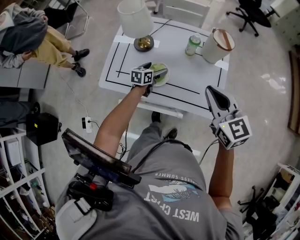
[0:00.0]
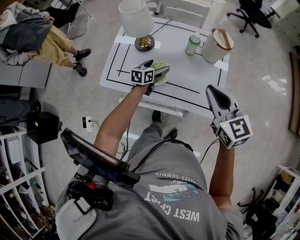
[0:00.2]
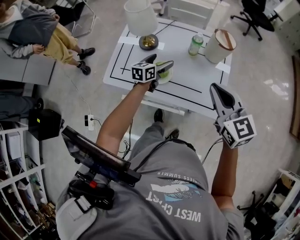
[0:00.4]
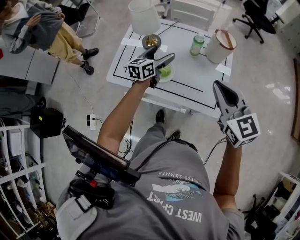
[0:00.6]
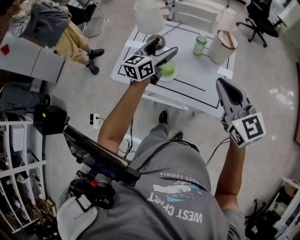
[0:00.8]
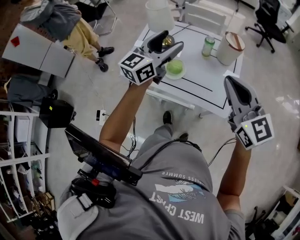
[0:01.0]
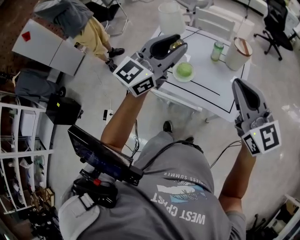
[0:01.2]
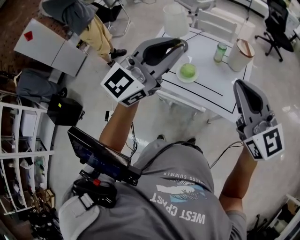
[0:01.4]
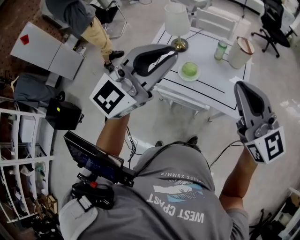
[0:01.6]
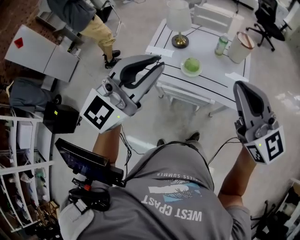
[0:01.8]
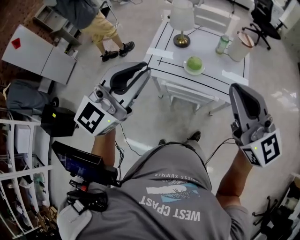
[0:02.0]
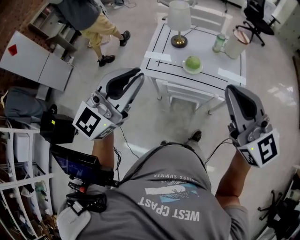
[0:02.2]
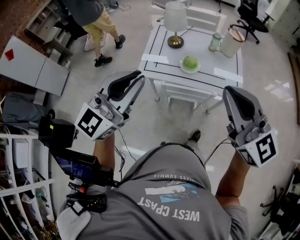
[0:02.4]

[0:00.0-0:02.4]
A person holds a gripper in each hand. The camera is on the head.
0:00.0 to 0:01.2: The left gripper heads upward, covering some 40 cm, tips its fingers upward by about 40 degrees, and closes its fingers. Meanwhile the right gripper goes roughly 15 cm upward and backward, and turns by some 20 degrees.
0:01.2 to 0:02.4: Both grippers move to the left and backward, some 30 cm.

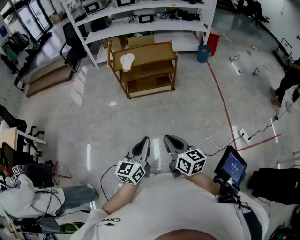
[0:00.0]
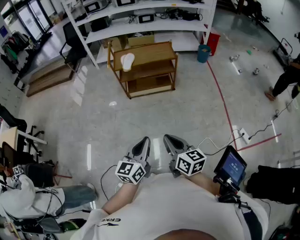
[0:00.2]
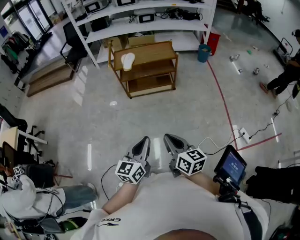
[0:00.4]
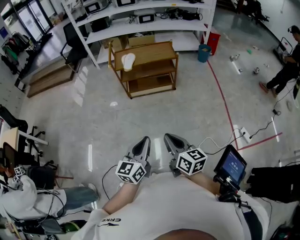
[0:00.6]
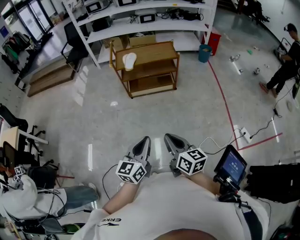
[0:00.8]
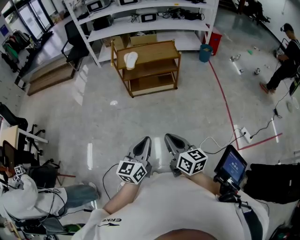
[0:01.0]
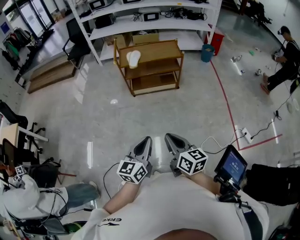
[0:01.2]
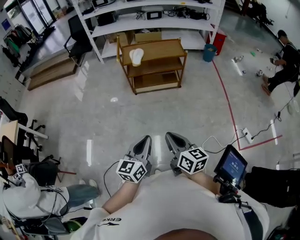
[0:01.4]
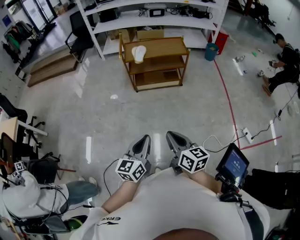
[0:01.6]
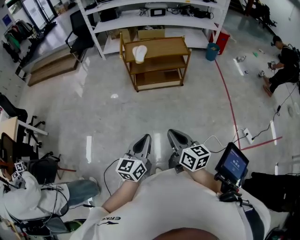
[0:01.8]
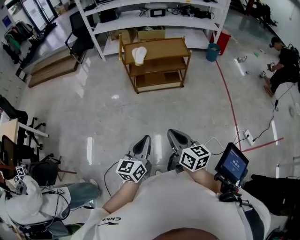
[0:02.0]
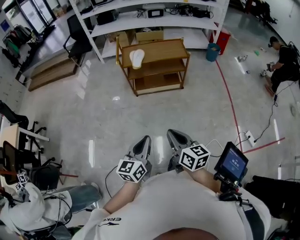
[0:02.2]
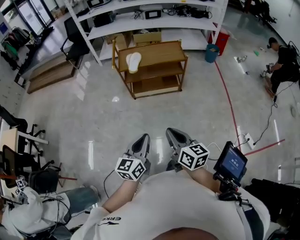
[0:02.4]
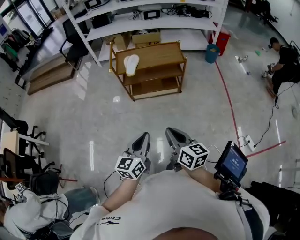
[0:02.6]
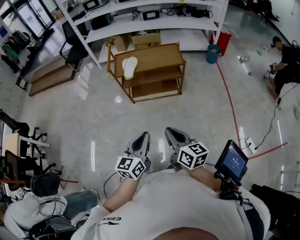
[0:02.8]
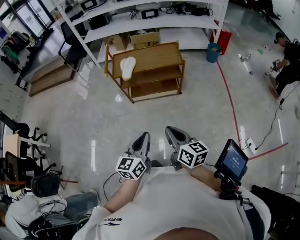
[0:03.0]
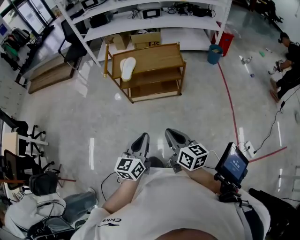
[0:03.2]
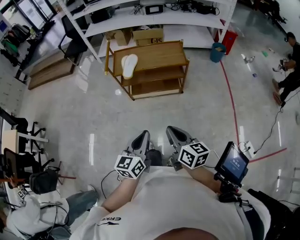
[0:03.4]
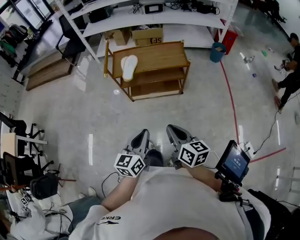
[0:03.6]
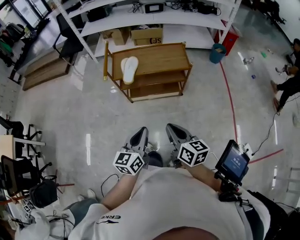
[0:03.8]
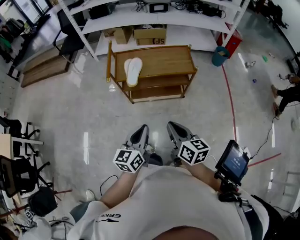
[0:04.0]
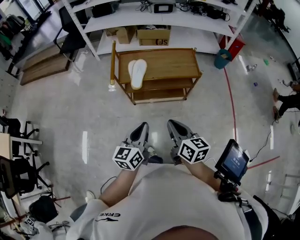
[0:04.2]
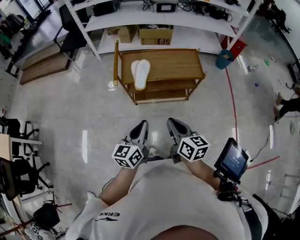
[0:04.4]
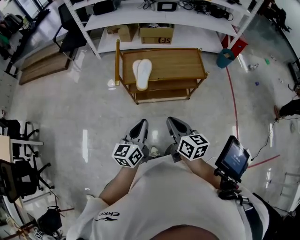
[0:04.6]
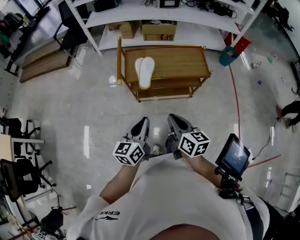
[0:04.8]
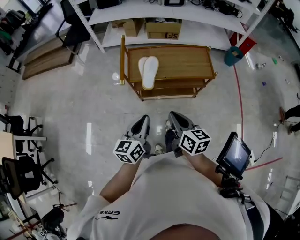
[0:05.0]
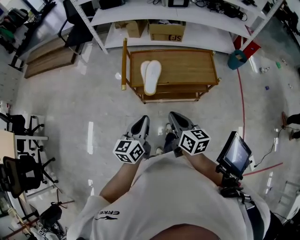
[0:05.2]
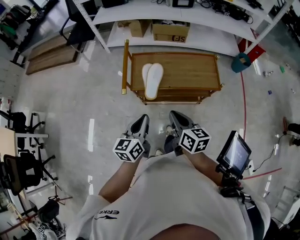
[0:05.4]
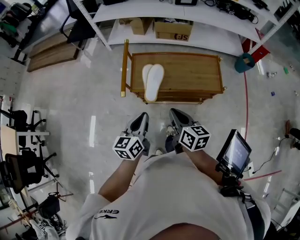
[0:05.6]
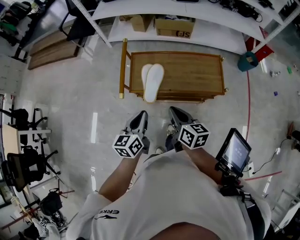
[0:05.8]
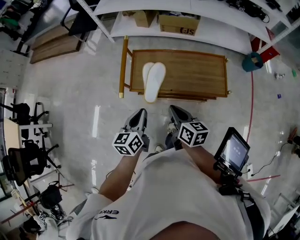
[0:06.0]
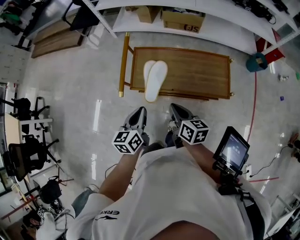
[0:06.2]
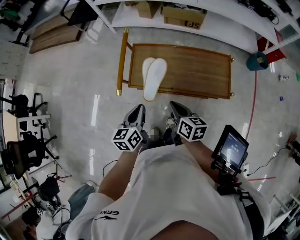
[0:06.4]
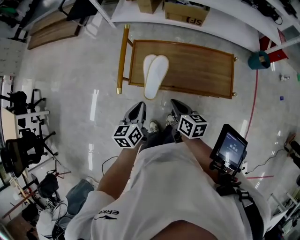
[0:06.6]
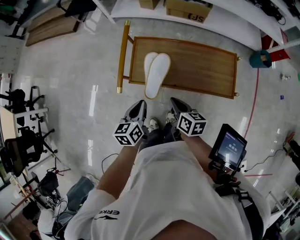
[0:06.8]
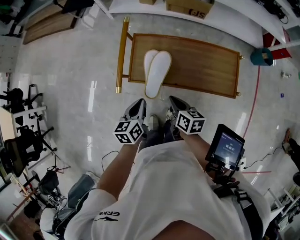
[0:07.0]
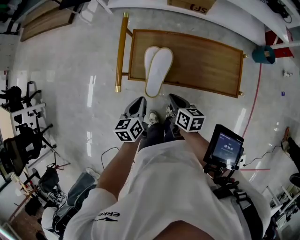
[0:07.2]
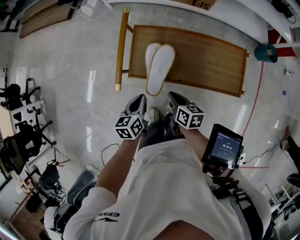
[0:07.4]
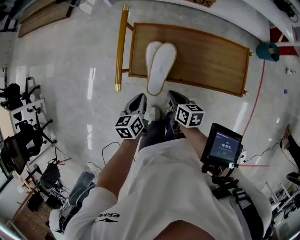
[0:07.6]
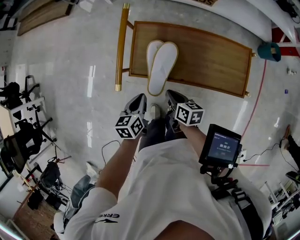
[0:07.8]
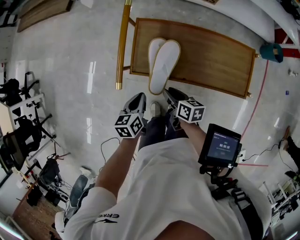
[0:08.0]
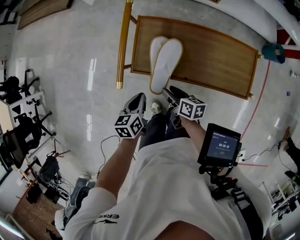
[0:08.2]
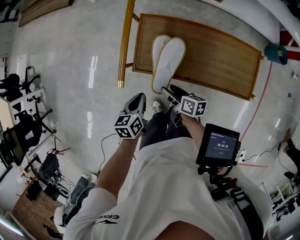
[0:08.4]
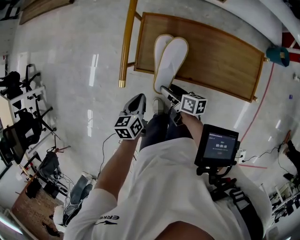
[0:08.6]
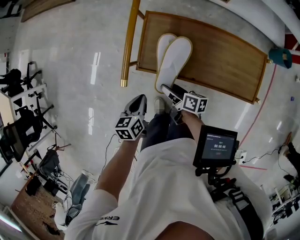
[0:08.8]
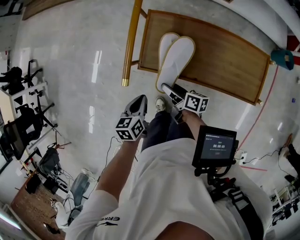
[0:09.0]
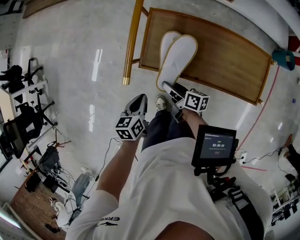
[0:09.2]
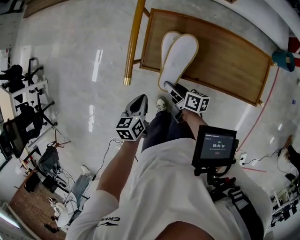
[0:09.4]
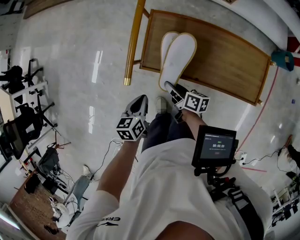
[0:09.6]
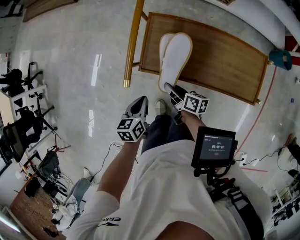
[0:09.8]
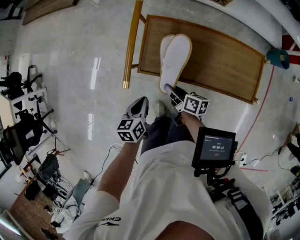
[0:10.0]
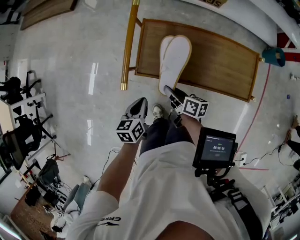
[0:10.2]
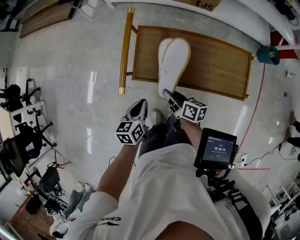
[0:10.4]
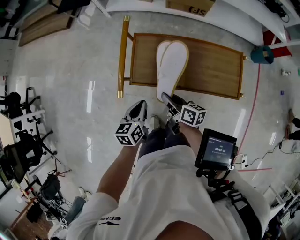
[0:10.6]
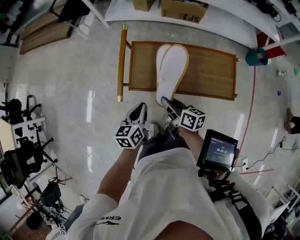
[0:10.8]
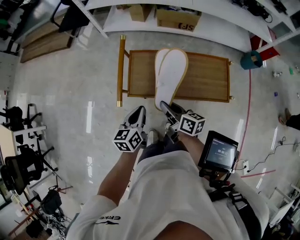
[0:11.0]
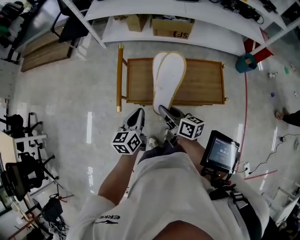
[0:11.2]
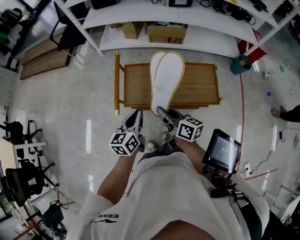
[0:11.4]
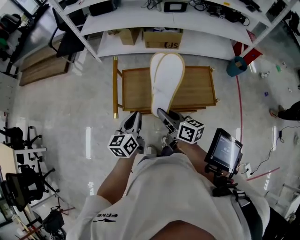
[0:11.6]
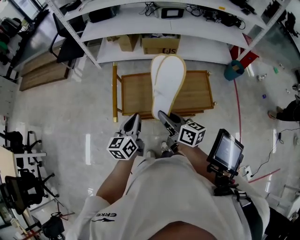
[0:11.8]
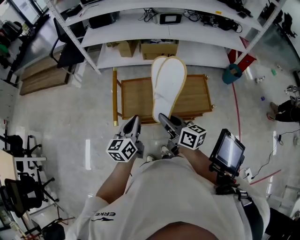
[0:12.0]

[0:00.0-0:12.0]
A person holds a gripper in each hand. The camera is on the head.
0:00.0 to 0:01.6: The two grippers go roughly 10 cm to the left.
0:01.6 to 0:03.0: Both grippers move forward and to the right, roughly 25 cm.
0:03.0 to 0:04.4: Both grippers travel together forward and to the left, approximately 25 cm.
0:04.4 to 0:06.0: The two grippers go some 25 cm forward.
0:06.0 to 0:07.6: The two grippers go approximately 20 cm downward and forward.
0:07.6 to 0:09.0: The left gripper ends up some 5 cm from where it was; the right gripper travels to the left and downward by roughly 5 cm, changes its angle by some 30 degrees, and opens its fingers.
0:09.0 to 0:10.4: The left gripper moves some 5 cm. The right gripper travels upward by about 5 cm, and closes its fingers.
0:10.4 to 0:12.0: The grippers both shift upward by some 25 cm. The left gripper rotates roughly 30 degrees. The right gripper changes its angle by some 30 degrees.

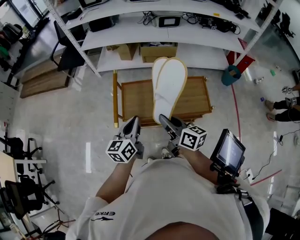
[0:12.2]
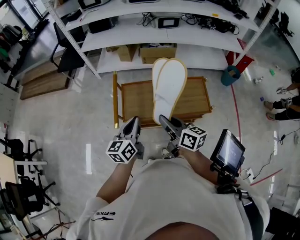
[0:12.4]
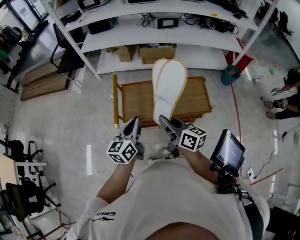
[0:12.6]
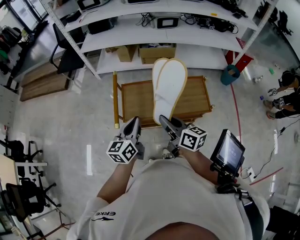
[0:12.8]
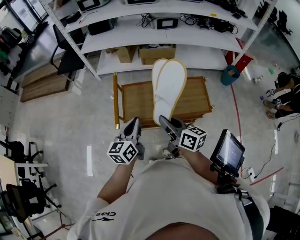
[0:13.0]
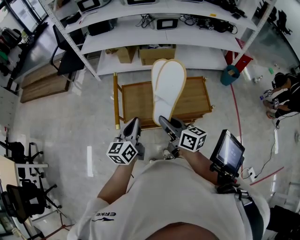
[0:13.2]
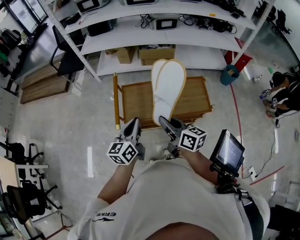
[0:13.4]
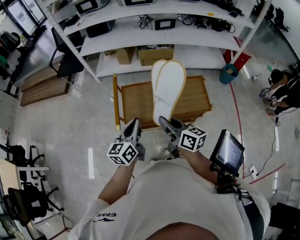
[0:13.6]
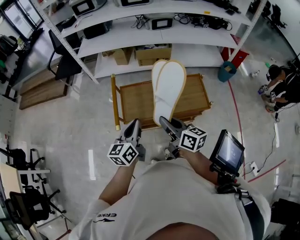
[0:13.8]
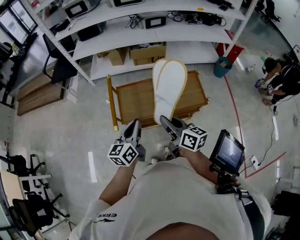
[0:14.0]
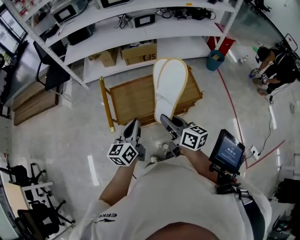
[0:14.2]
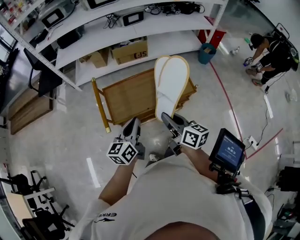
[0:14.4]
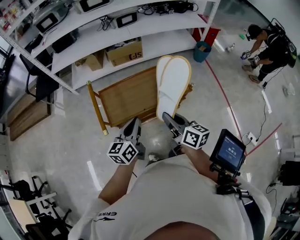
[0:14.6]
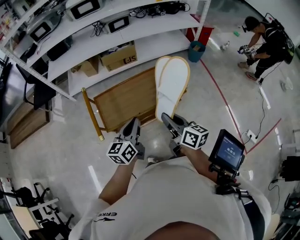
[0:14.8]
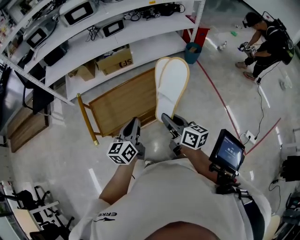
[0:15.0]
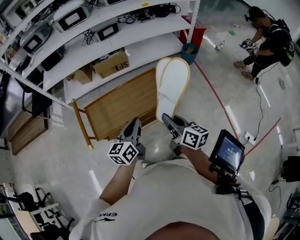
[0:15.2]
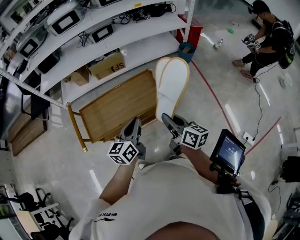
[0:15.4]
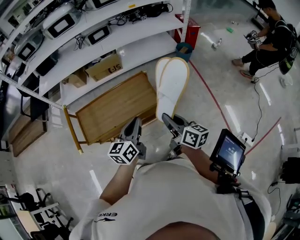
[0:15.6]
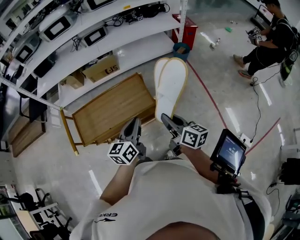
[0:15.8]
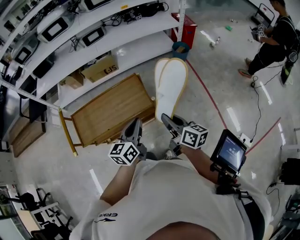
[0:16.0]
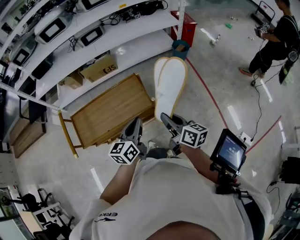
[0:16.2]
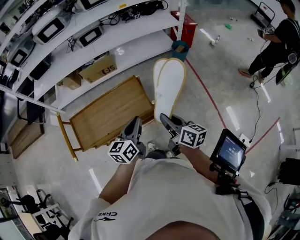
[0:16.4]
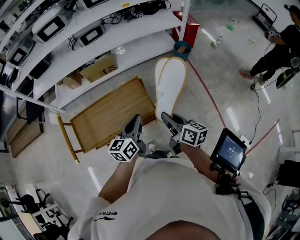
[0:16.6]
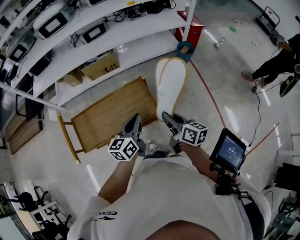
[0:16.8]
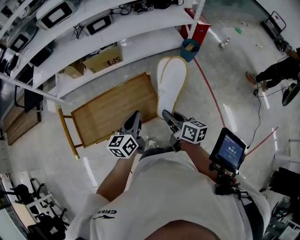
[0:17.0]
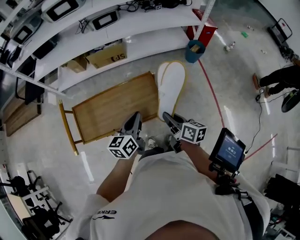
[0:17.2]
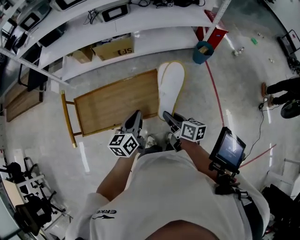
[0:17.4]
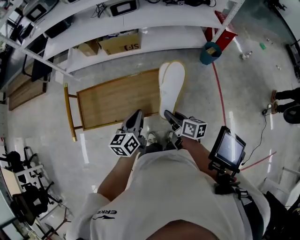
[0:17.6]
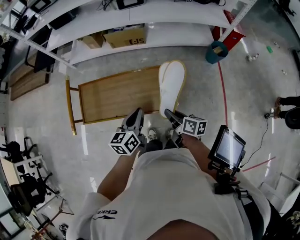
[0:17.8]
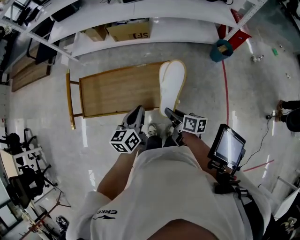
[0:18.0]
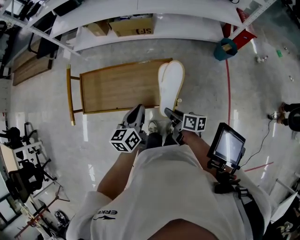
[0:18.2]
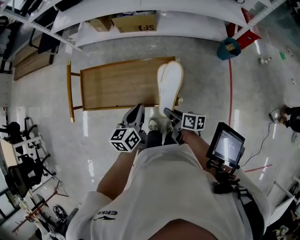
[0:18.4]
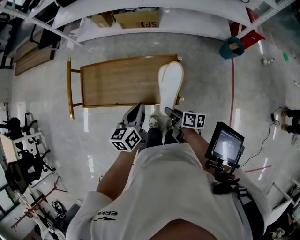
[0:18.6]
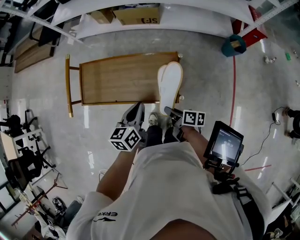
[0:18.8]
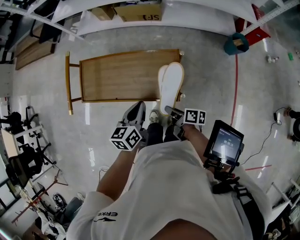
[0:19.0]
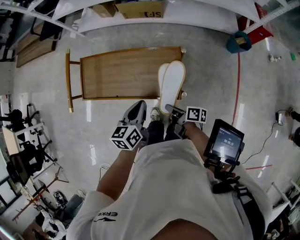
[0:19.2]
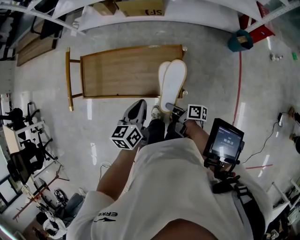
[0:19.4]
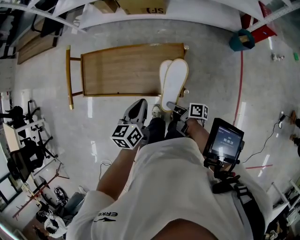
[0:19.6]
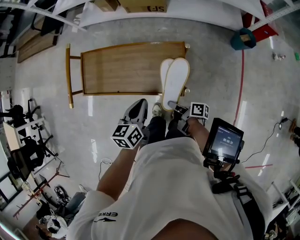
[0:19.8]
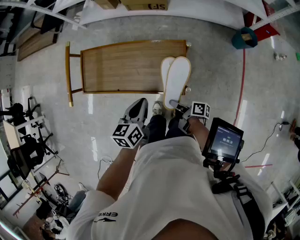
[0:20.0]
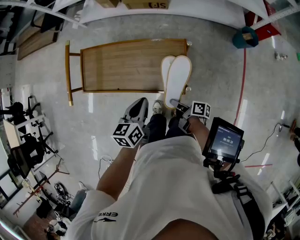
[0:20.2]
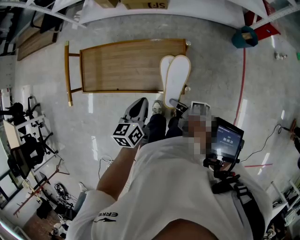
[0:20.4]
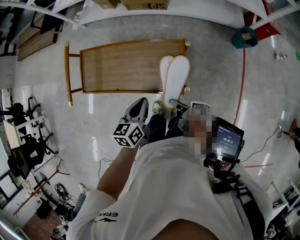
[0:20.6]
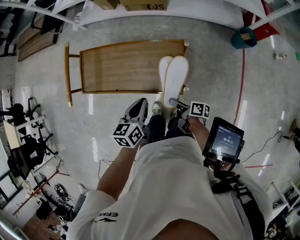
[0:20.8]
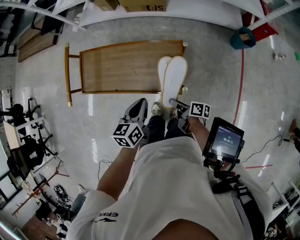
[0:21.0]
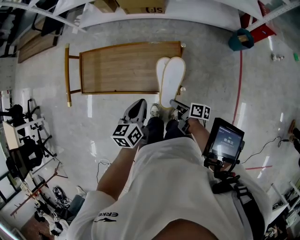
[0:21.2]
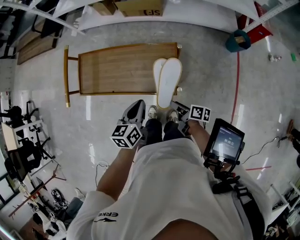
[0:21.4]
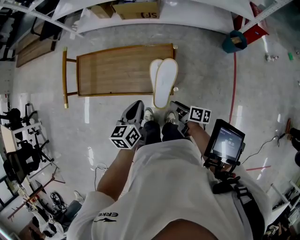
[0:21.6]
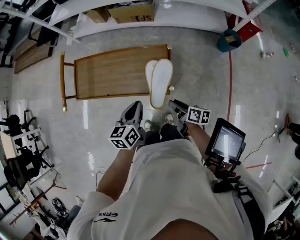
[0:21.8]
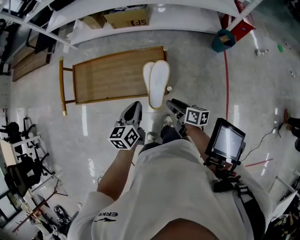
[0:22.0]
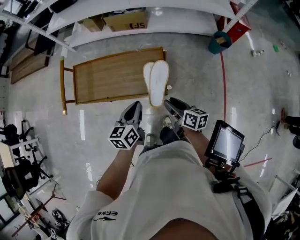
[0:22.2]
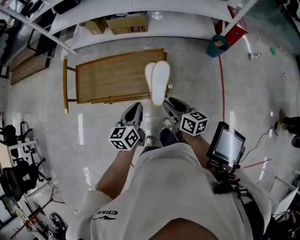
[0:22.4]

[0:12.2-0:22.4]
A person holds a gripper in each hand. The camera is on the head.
0:12.2 to 0:13.6: The grippers move only a little.
0:13.6 to 0:15.2: The two grippers go about 20 cm to the right. The right gripper rotates roughly 20 degrees. The left gripper changes its angle by about 20 degrees.
0:15.2 to 0:16.6: Both grippers move to the right and forward, roughly 20 cm.
0:16.6 to 0:18.0: The left gripper is displaced to the left, downward and forward by approximately 10 cm, and turns by approximately 20 degrees. Meanwhile the right gripper shifts about 15 cm downward, forward and to the left, and rotates approximately 30 degrees.
0:18.0 to 0:19.4: The right gripper shifts roughly 10 cm downward, and swivels about 30 degrees.
0:19.4 to 0:21.0: The right gripper opens.
0:21.0 to 0:22.4: The right gripper travels upward by approximately 20 cm, and swivels roughly 40 degrees. Meanwhile the left gripper shifts about 10 cm backward and upward.
